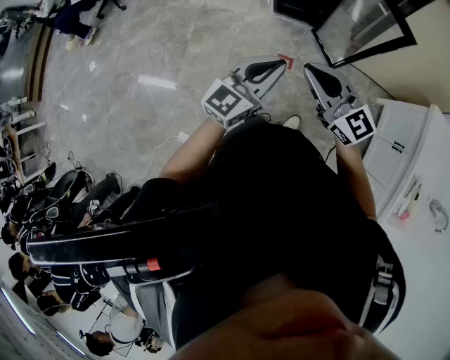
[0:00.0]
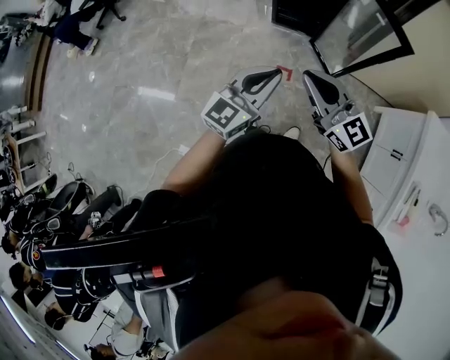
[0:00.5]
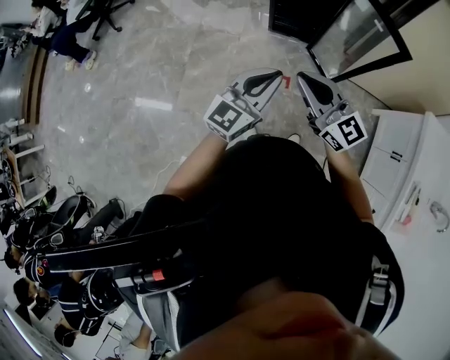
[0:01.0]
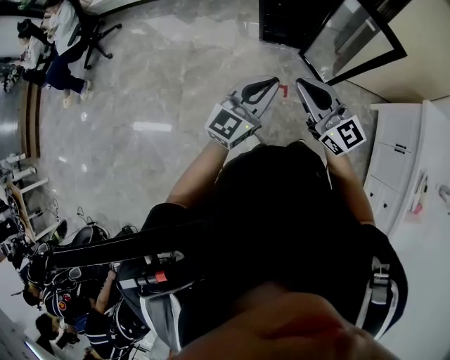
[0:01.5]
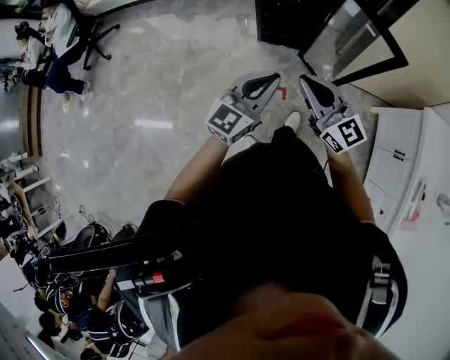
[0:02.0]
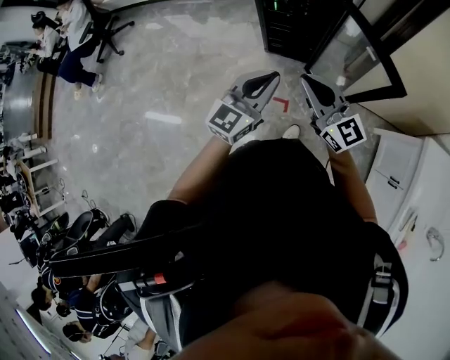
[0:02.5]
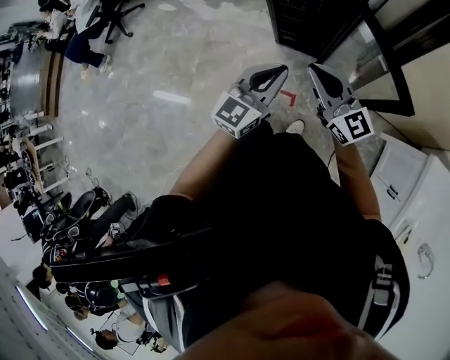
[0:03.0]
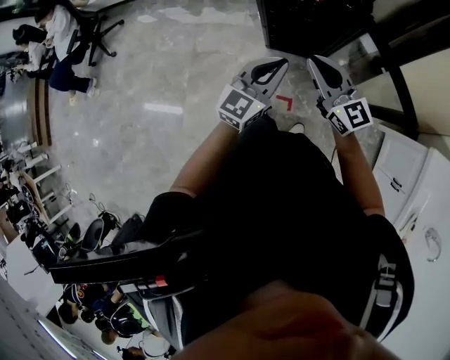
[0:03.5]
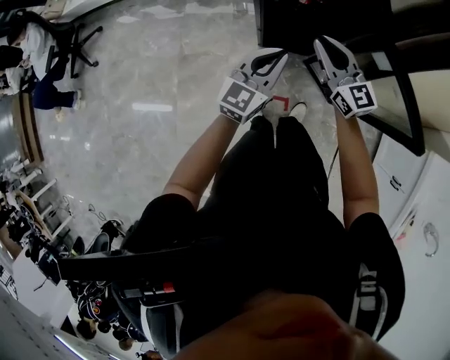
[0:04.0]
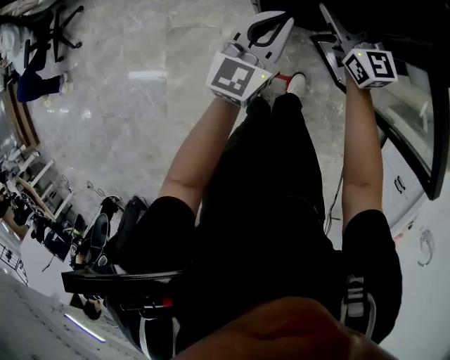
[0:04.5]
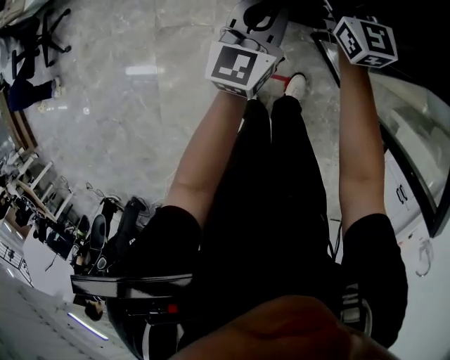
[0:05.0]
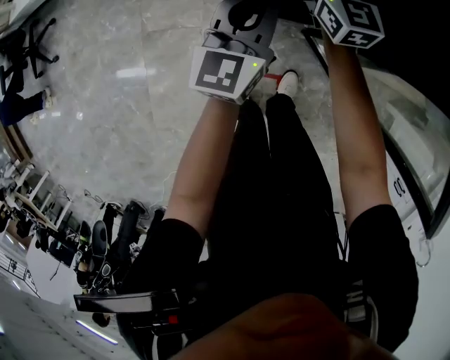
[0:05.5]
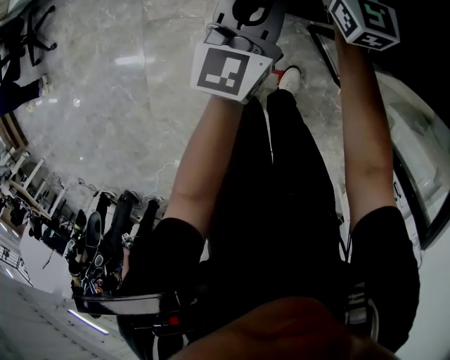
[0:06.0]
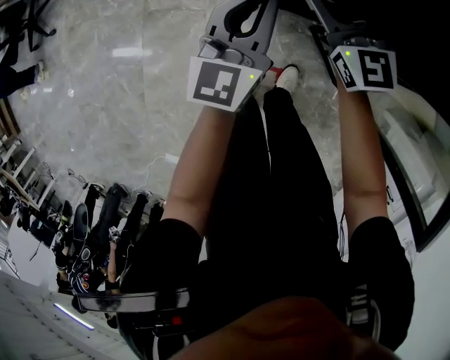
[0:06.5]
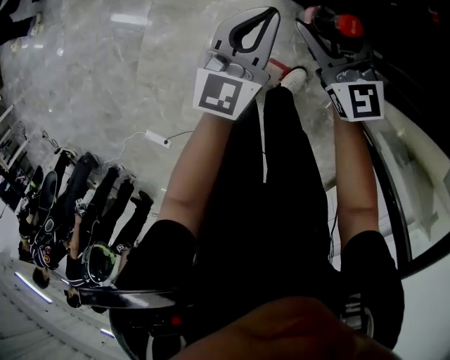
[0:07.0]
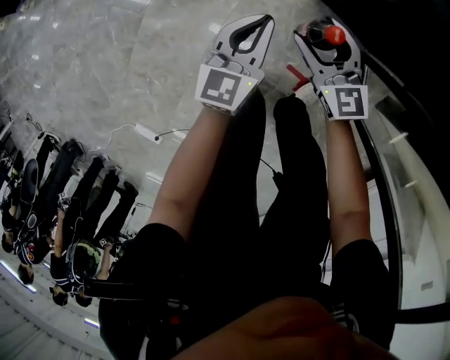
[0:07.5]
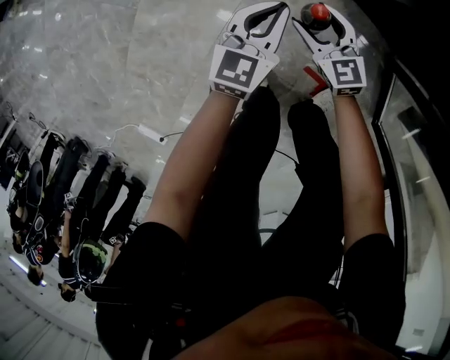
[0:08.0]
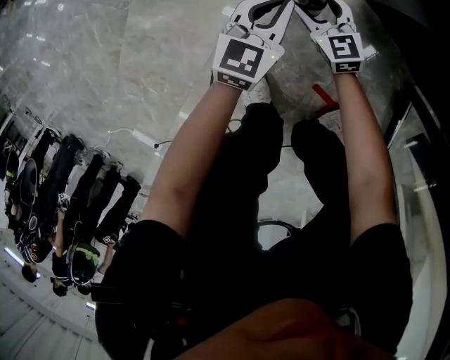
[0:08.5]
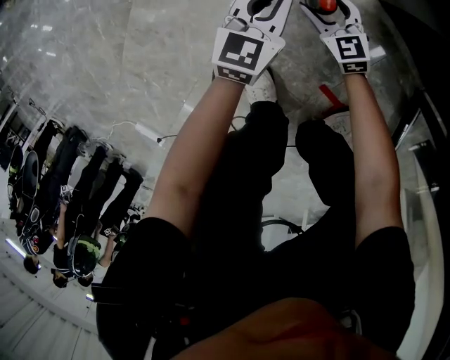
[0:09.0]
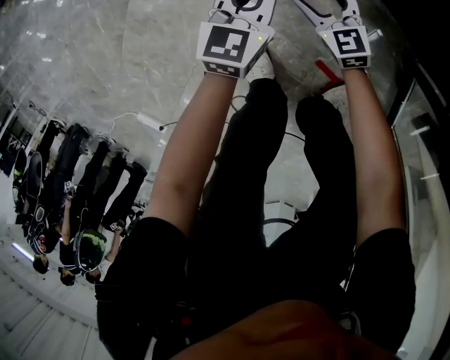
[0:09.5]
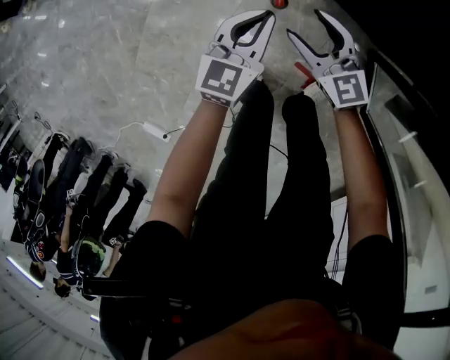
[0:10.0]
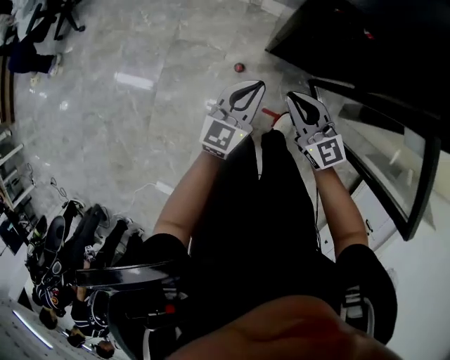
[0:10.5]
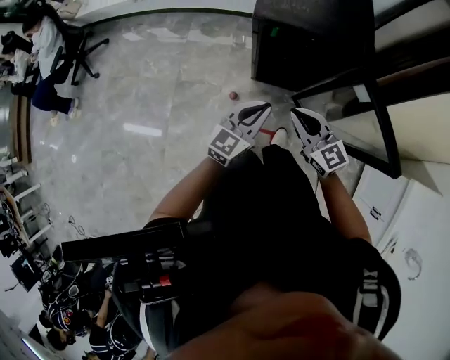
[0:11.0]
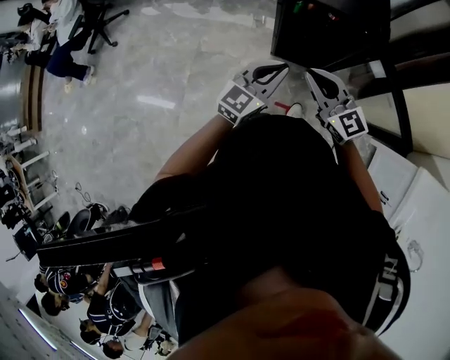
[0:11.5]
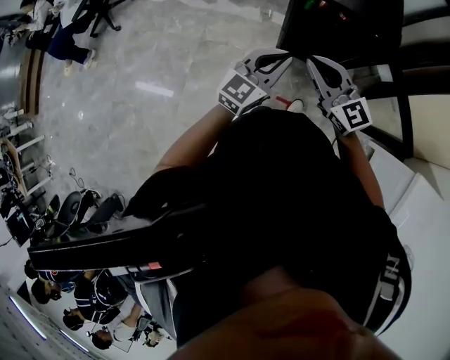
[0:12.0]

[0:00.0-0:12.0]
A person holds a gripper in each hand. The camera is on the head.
0:00.0 to 0:02.0: Both grippers travel together forward, about 15 cm.
0:02.0 to 0:04.0: The grippers both shift forward by roughly 40 cm.
0:04.0 to 0:06.0: The grippers both shift forward and downward by roughly 30 cm. The right gripper opens.
0:06.0 to 0:08.0: Both grippers move downward, approximately 50 cm. The right gripper changes its angle by roughly 40 degrees, while the left gripper swivels about 30 degrees.
0:08.0 to 0:10.0: Both grippers travel together upward, approximately 15 cm.
0:10.0 to 0:12.0: Both grippers move upward, some 60 cm. The left gripper swivels about 40 degrees. The right gripper closes its fingers.

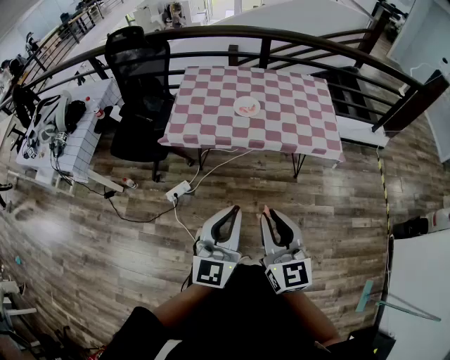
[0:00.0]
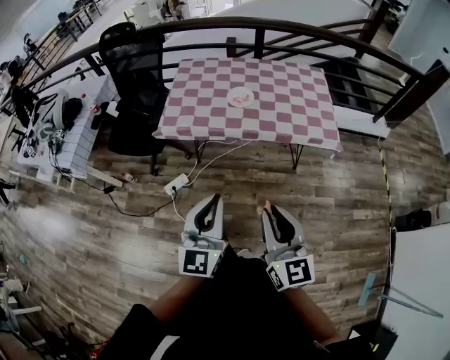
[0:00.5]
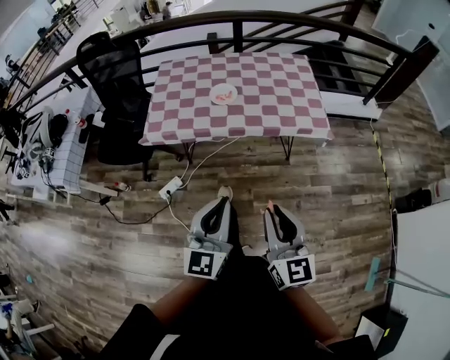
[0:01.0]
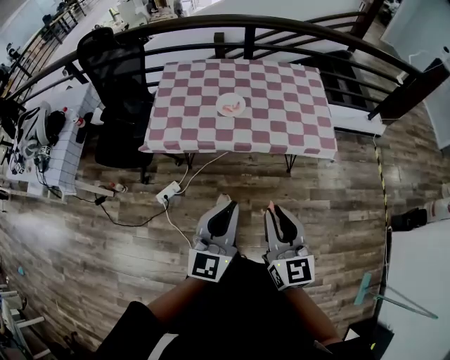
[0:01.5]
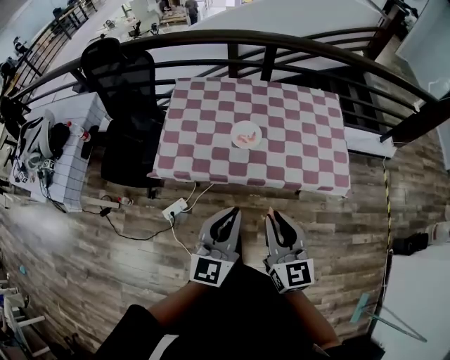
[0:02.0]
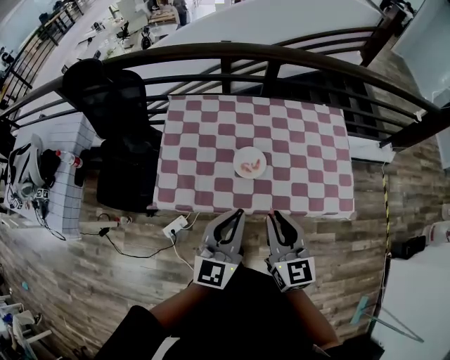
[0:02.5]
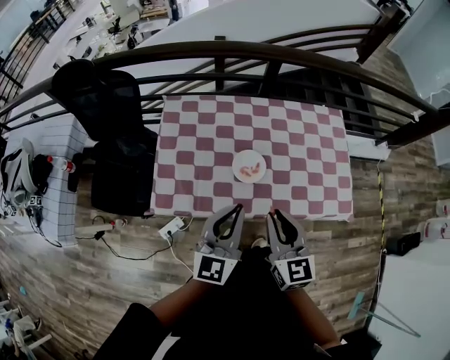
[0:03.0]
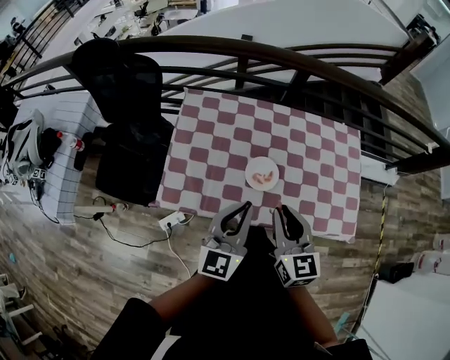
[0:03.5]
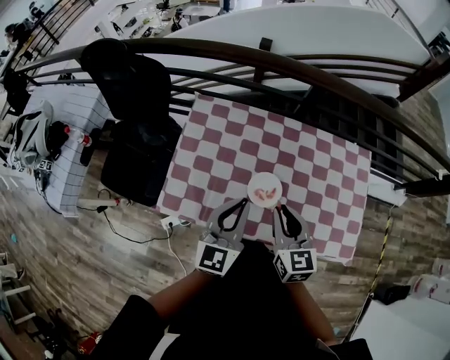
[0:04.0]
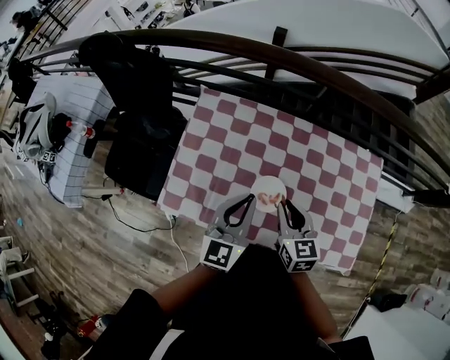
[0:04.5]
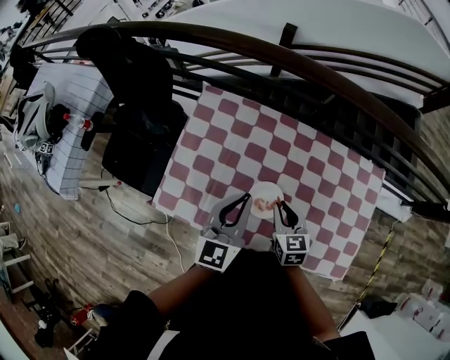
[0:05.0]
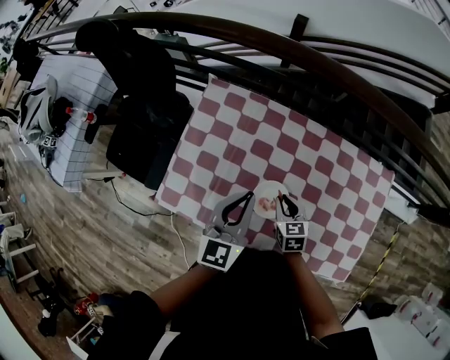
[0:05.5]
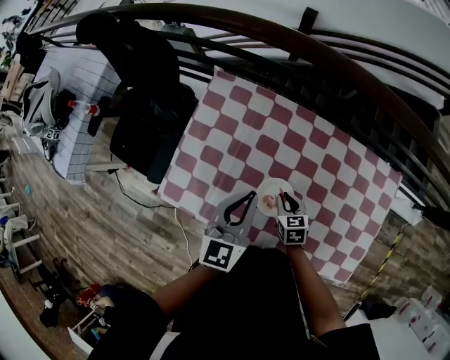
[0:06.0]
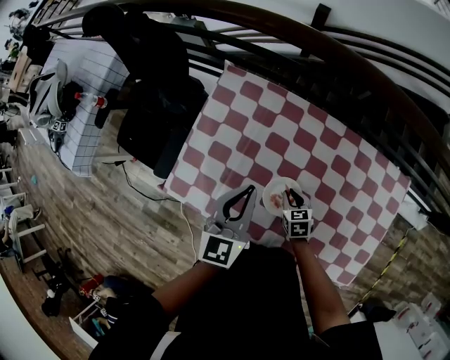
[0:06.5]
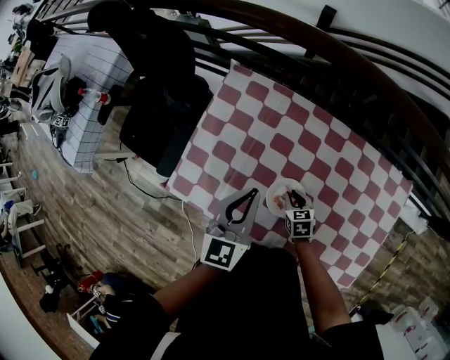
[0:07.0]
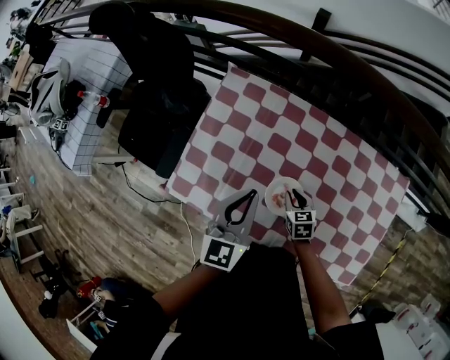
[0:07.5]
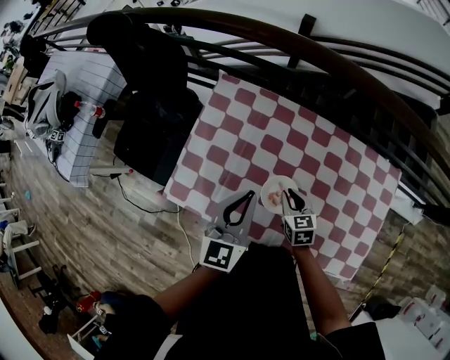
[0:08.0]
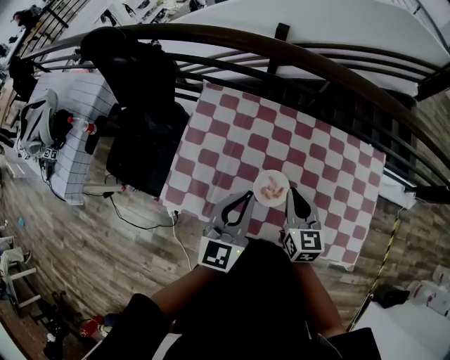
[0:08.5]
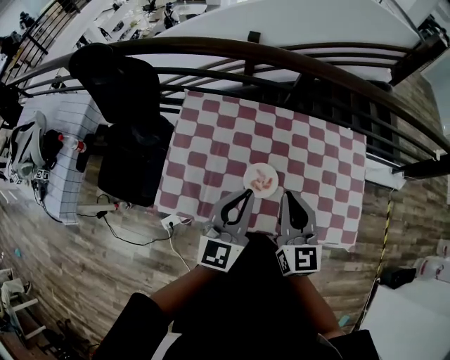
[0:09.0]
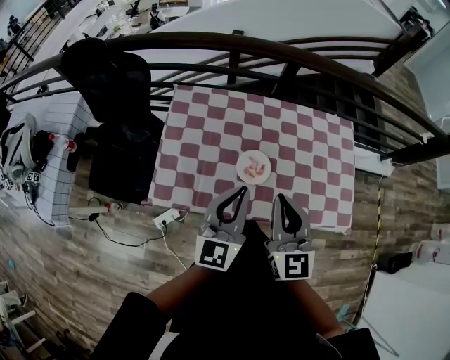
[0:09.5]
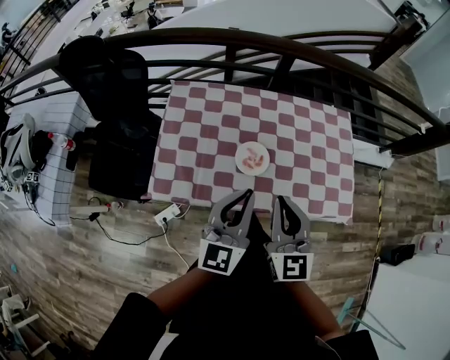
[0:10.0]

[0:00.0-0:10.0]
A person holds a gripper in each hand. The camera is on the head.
0:00.0 to 0:02.0: Both grippers move forward, about 25 cm.
0:02.0 to 0:04.0: Both grippers travel together forward, about 30 cm.
0:04.0 to 0:06.0: The left gripper heads forward and downward, covering about 10 cm, while the right gripper moves downward, some 25 cm, and rotates some 30 degrees.
0:06.0 to 0:08.0: The right gripper shifts about 5 cm upward.
0:08.0 to 0:10.0: The right gripper heads upward and backward, covering about 35 cm, and points its fingers approximately 30 degrees further upward; the left gripper is displaced backward and upward by roughly 20 cm, and changes its angle by approximately 20 degrees.

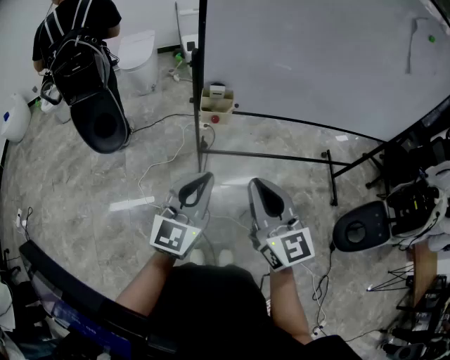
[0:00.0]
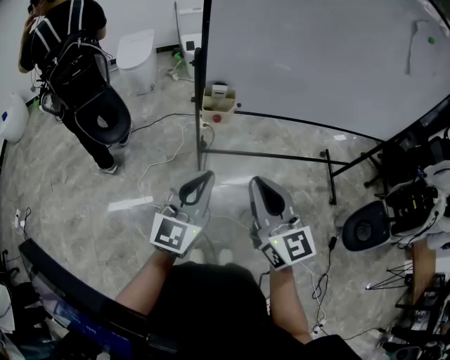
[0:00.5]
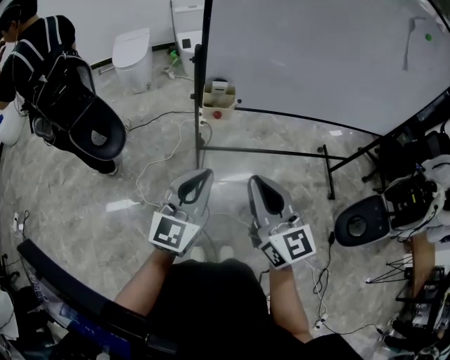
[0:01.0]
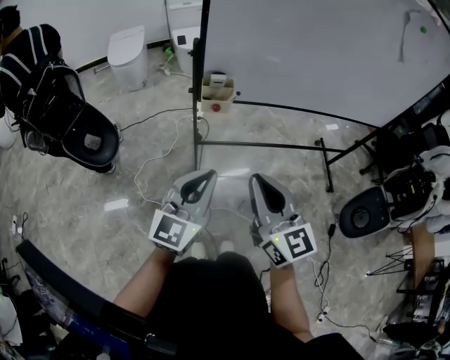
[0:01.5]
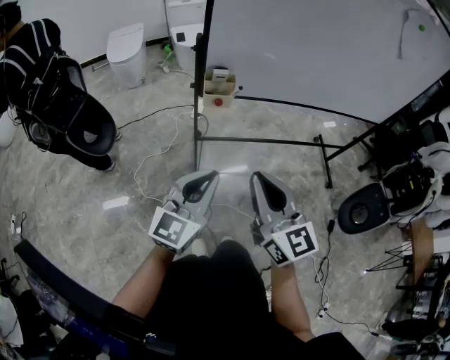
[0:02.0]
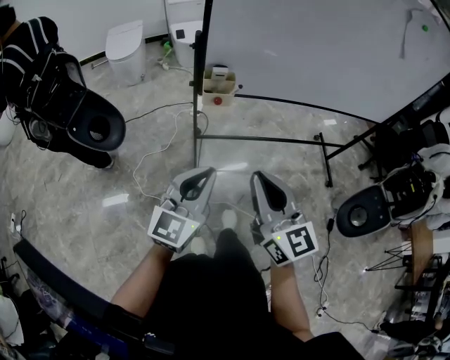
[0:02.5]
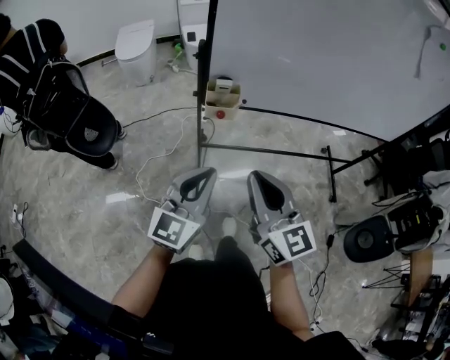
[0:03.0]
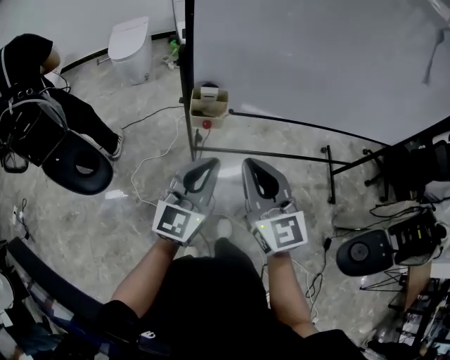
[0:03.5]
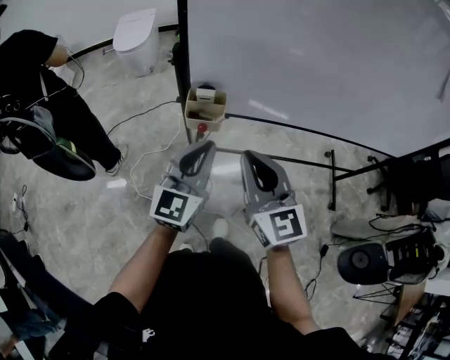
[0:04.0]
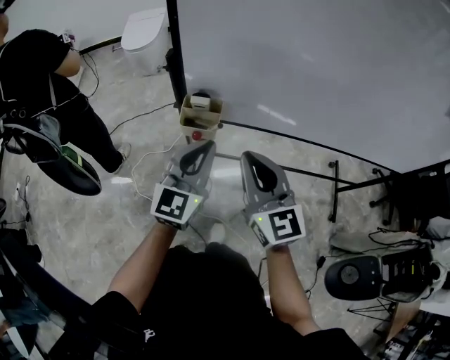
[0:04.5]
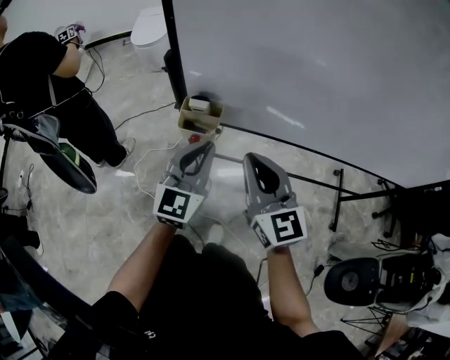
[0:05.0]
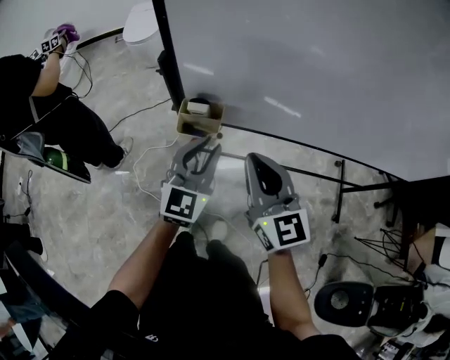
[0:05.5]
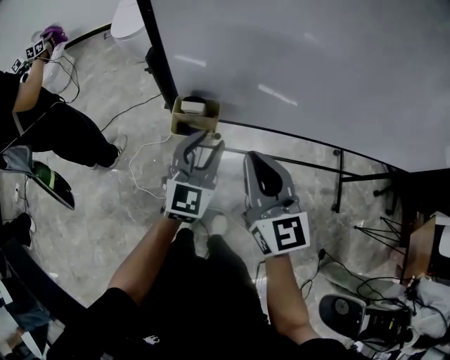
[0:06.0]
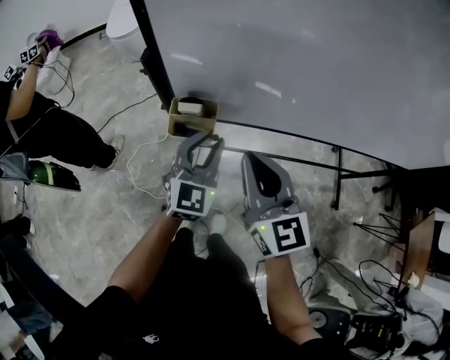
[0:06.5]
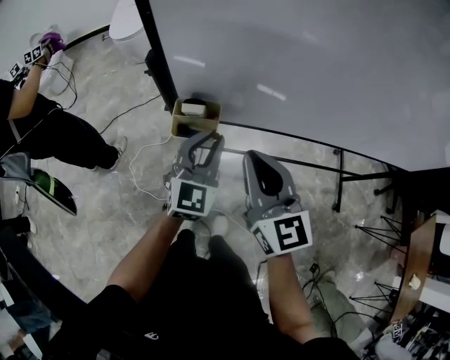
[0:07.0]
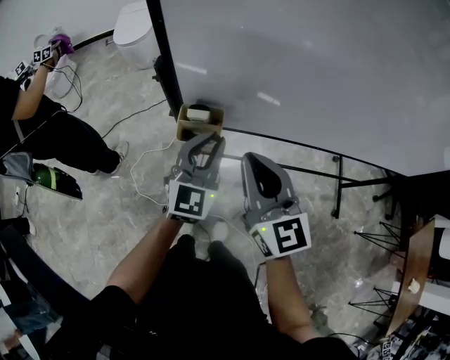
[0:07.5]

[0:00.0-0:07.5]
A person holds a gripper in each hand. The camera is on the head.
0:00.0 to 0:02.0: The left gripper is displaced downward by approximately 5 cm. Meanwhile the right gripper moves roughly 5 cm.
0:02.0 to 0:04.0: The two grippers go about 25 cm forward.
0:04.0 to 0:05.5: The grippers both shift forward by some 10 cm.
0:05.5 to 0:07.5: There are only small adjustments of the grippers.
